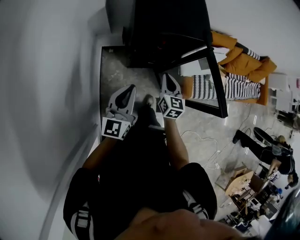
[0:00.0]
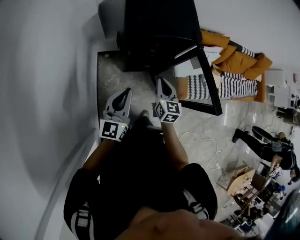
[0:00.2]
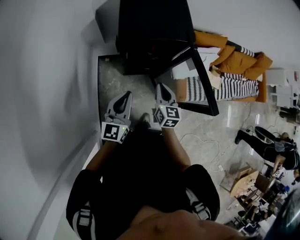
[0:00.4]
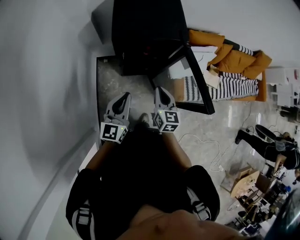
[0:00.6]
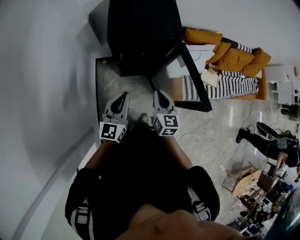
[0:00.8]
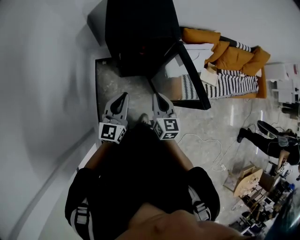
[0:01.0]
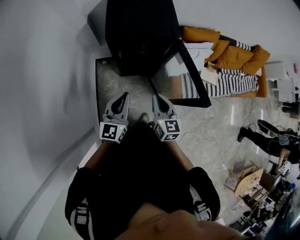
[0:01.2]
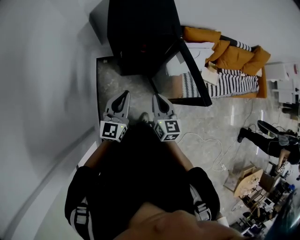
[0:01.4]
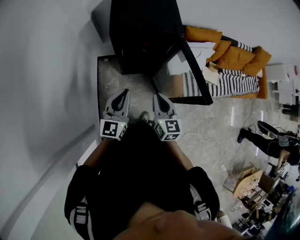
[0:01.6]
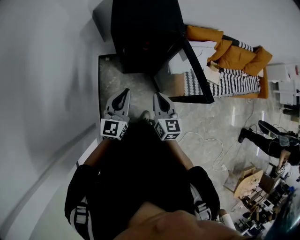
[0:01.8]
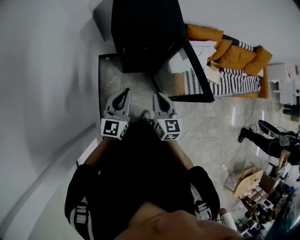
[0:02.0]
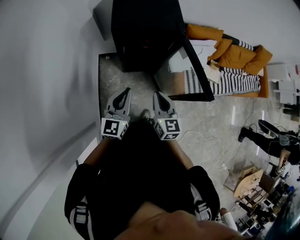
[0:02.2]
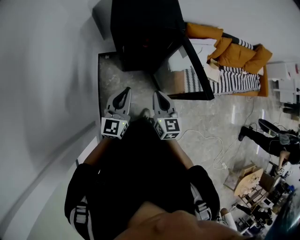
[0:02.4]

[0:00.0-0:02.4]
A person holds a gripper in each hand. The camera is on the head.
0:00.0 to 0:01.2: The left gripper is displaced to the right by roughly 10 cm; the right gripper shifts about 15 cm backward, upward and to the right.
0:01.2 to 0:02.4: There are only small adjustments of the grippers.

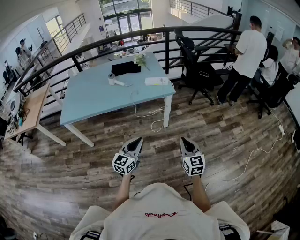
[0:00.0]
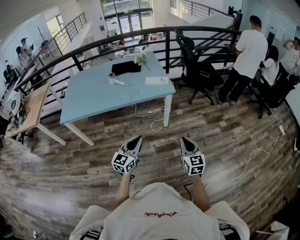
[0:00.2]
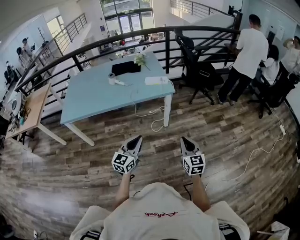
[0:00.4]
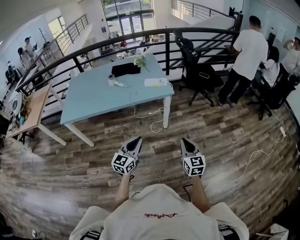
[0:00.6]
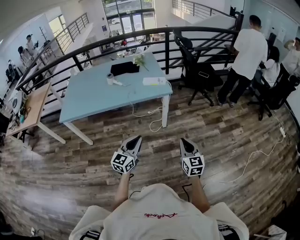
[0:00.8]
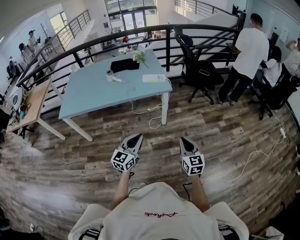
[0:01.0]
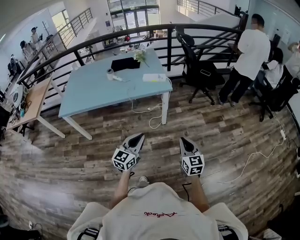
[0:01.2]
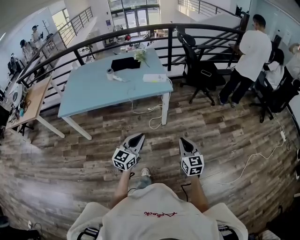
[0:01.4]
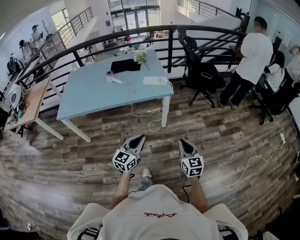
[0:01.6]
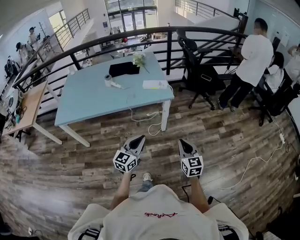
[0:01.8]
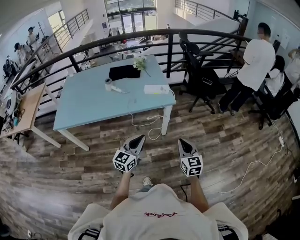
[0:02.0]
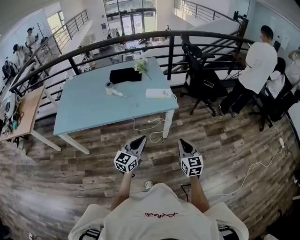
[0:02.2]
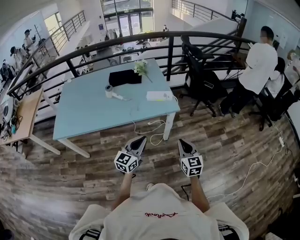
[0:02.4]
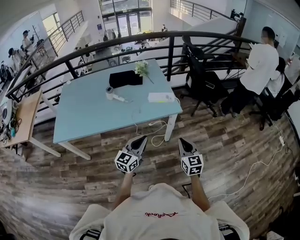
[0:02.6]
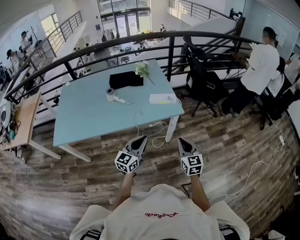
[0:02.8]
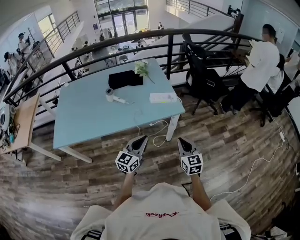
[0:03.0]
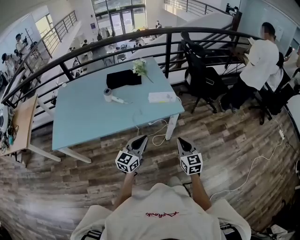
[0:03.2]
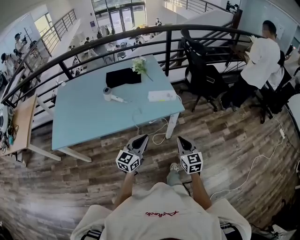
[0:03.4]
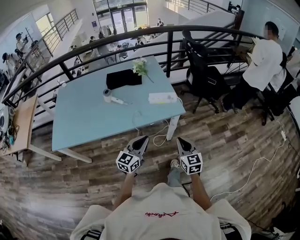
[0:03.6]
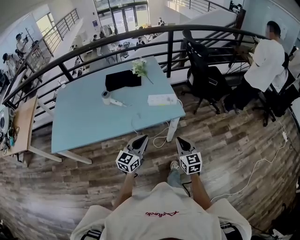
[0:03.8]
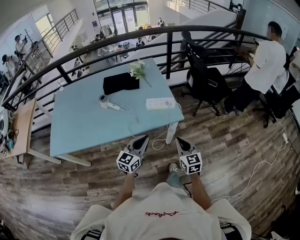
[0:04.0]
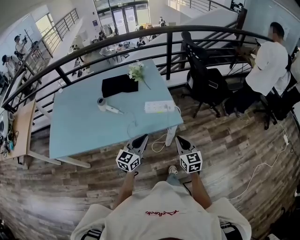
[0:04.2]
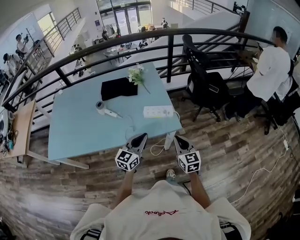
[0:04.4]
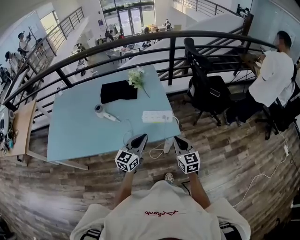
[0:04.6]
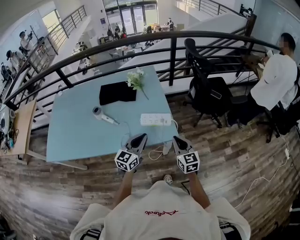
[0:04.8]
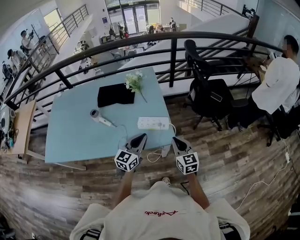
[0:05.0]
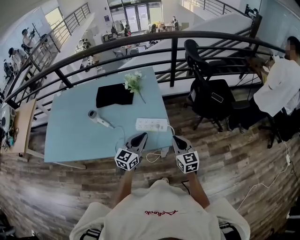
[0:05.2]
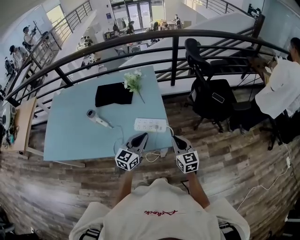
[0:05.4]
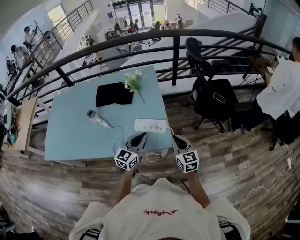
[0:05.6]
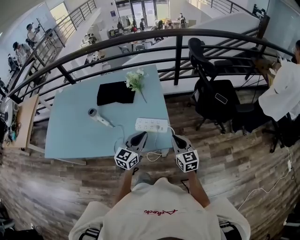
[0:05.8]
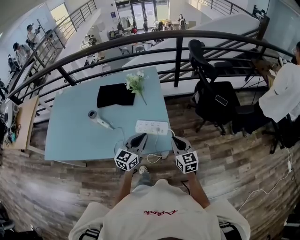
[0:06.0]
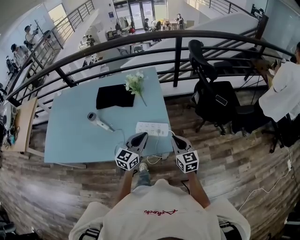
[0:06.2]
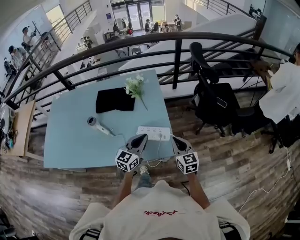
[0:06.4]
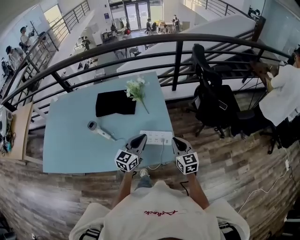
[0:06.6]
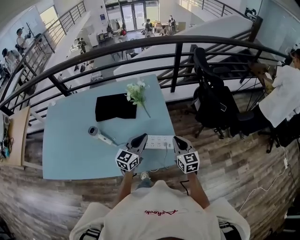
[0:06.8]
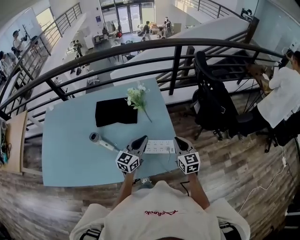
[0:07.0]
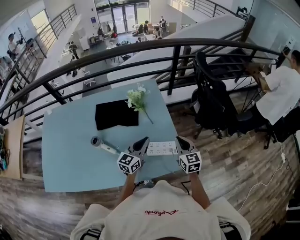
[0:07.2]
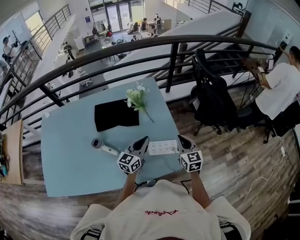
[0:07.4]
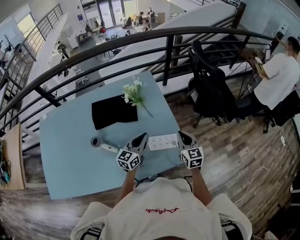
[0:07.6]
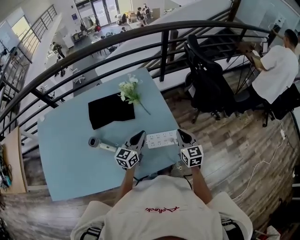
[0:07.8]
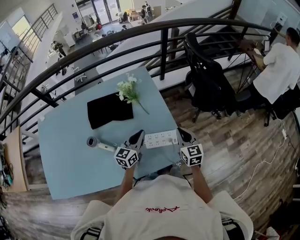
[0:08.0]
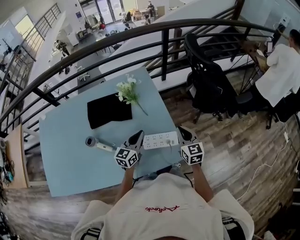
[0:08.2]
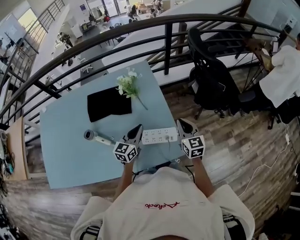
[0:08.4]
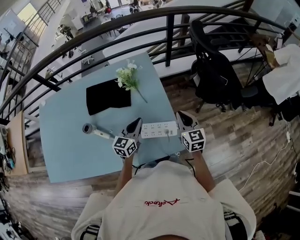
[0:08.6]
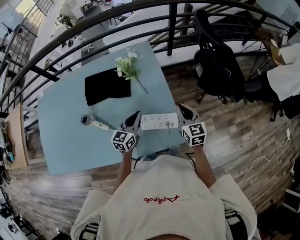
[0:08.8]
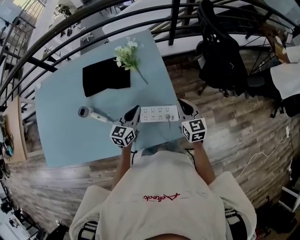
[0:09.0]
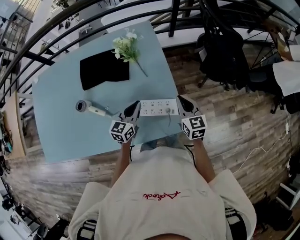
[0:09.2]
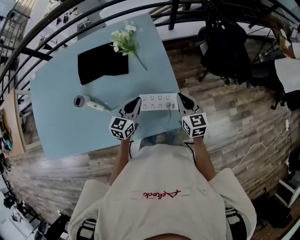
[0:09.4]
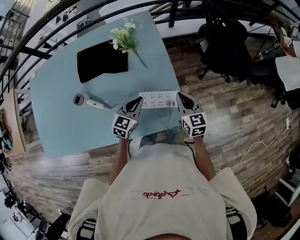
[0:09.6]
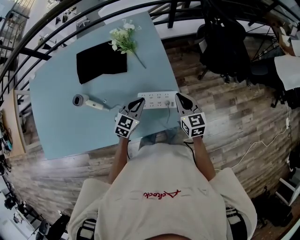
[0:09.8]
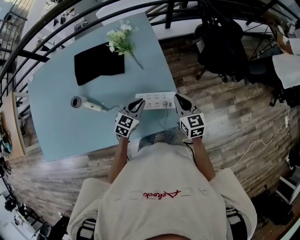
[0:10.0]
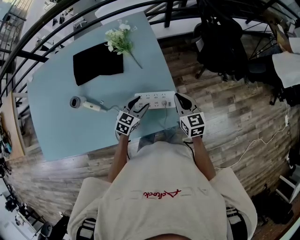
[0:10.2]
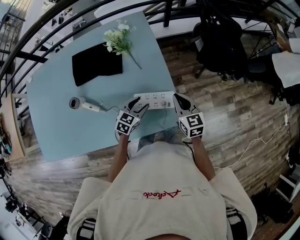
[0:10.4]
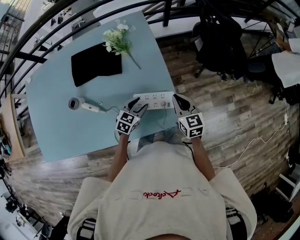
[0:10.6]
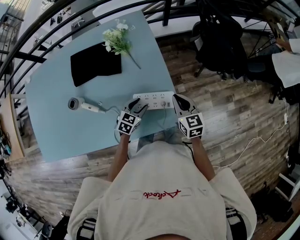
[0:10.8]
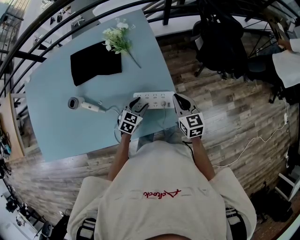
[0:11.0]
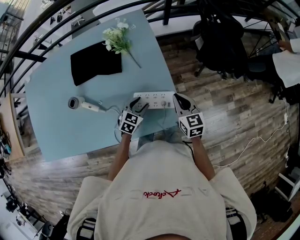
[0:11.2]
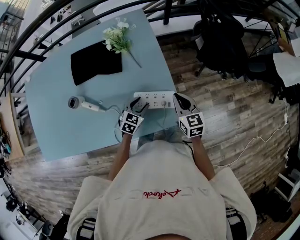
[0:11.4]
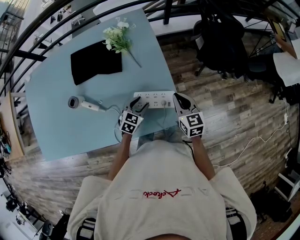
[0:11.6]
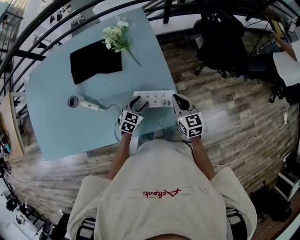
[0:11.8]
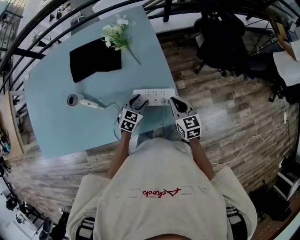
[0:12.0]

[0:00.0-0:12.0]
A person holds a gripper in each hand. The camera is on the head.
0:00.0 to 0:01.6: The right gripper moves approximately 5 cm. Meanwhile the left gripper shifts about 5 cm to the right.
0:01.6 to 0:03.0: Both grippers move forward and to the left, some 25 cm.
0:03.0 to 0:04.4: The two grippers go approximately 20 cm forward.
0:04.4 to 0:06.0: The left gripper moves forward and to the right, approximately 15 cm. The right gripper shifts some 15 cm forward.
0:06.0 to 0:07.6: The left gripper heads to the left and forward, covering roughly 20 cm, while the right gripper shifts roughly 15 cm forward and to the left.
0:07.6 to 0:09.0: The left gripper heads downward, covering about 5 cm. Meanwhile the right gripper moves forward, approximately 5 cm.
0:09.0 to 0:10.4: The right gripper moves about 5 cm, while the left gripper is displaced downward and to the right by some 10 cm, rotates roughly 30 degrees, and opens.
0:10.4 to 0:12.0: The grippers make only small movements.

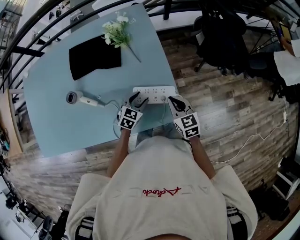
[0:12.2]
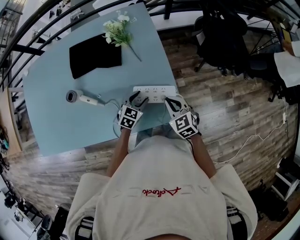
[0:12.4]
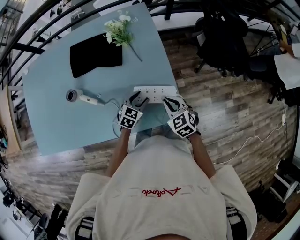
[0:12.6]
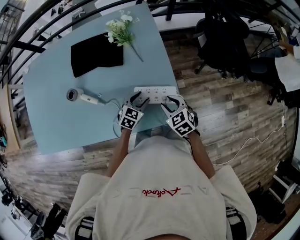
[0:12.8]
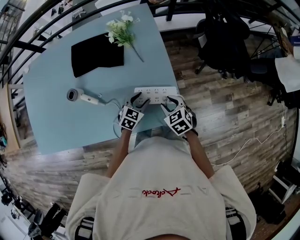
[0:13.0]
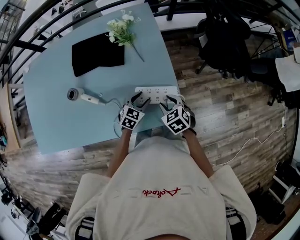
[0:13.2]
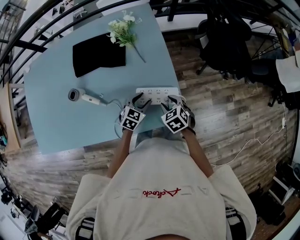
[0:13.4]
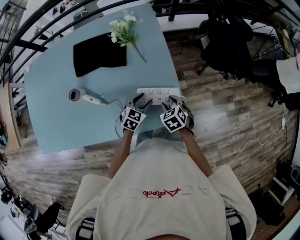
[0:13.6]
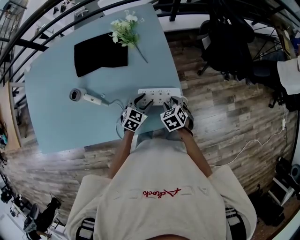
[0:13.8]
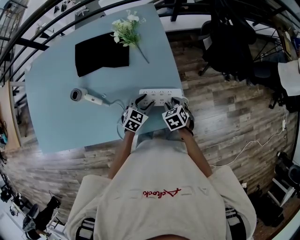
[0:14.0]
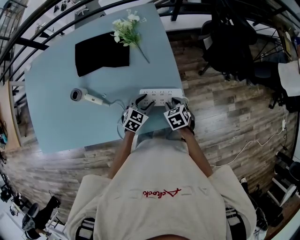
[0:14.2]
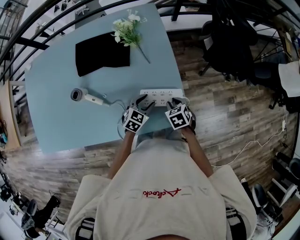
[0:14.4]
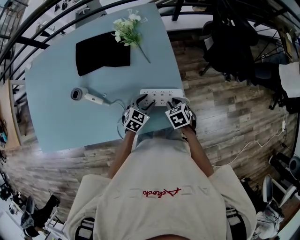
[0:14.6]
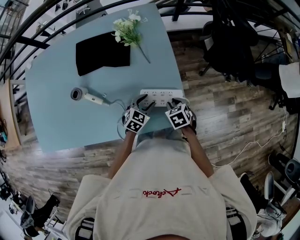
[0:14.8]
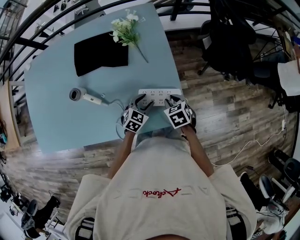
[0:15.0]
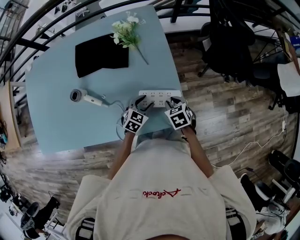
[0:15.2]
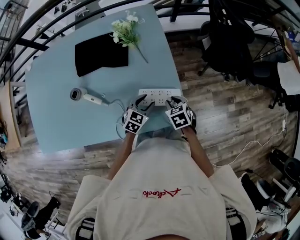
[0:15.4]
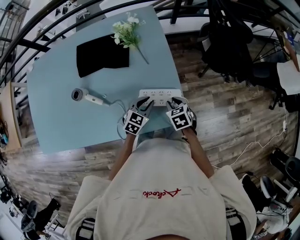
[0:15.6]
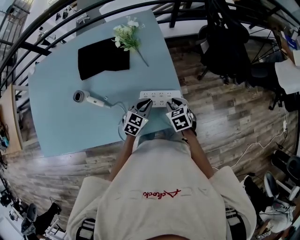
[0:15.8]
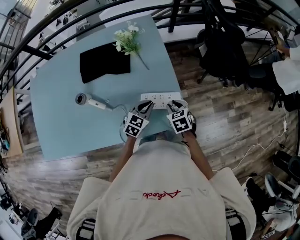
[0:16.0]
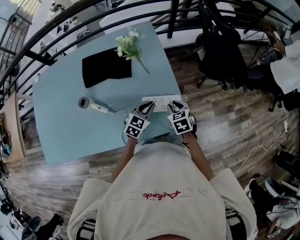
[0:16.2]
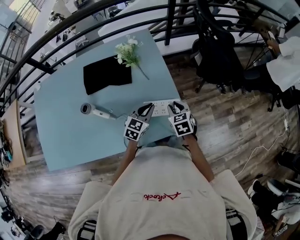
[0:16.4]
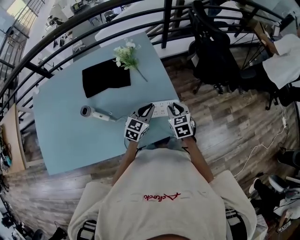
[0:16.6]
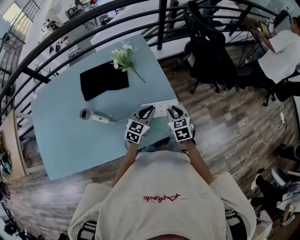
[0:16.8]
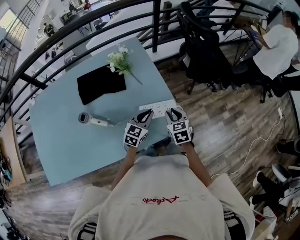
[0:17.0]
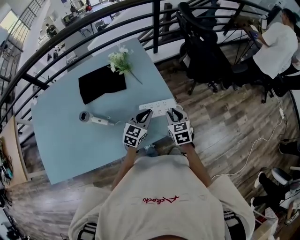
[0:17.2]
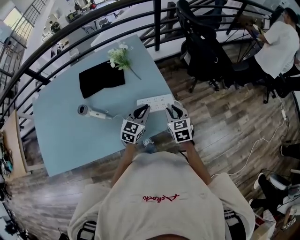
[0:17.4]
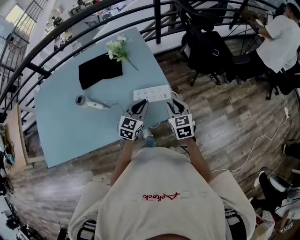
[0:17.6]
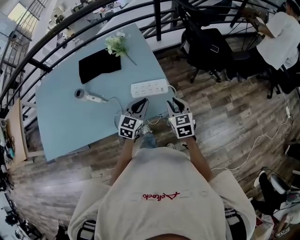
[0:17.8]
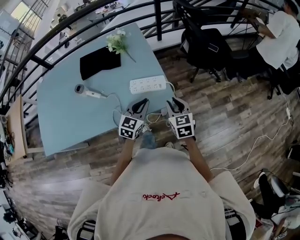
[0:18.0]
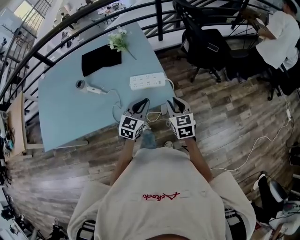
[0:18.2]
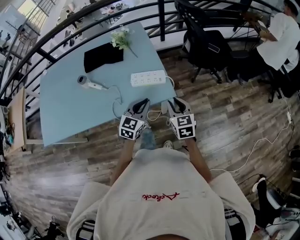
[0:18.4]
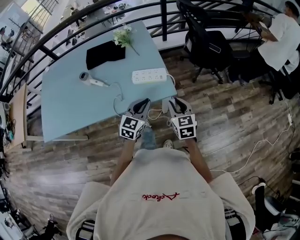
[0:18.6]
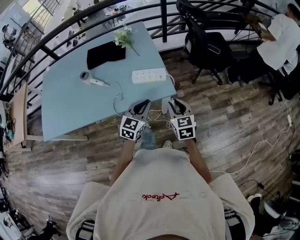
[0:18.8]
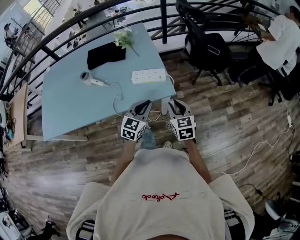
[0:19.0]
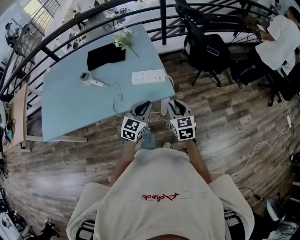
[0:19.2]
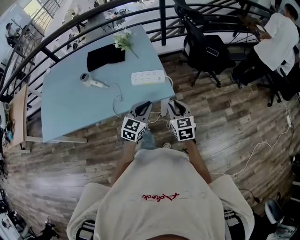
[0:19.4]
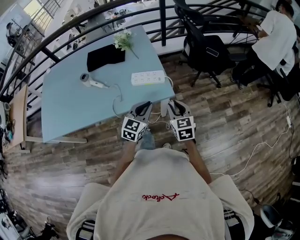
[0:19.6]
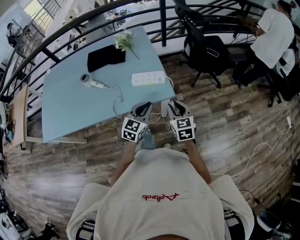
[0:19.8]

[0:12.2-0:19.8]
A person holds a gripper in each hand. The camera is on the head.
0:12.2 to 0:13.8: The right gripper travels downward by some 10 cm, angles its fingers downward, by some 30 degrees, and opens.
0:13.8 to 0:15.2: There are only small adjustments of the grippers.
0:15.2 to 0:16.8: Both grippers travel together upward, about 10 cm. The left gripper rotates about 20 degrees, and closes up. The right gripper changes its angle by roughly 30 degrees.
0:16.8 to 0:18.2: Both grippers travel together backward and to the right, about 20 cm.
0:18.2 to 0:19.8: Both grippers travel together backward, about 5 cm.

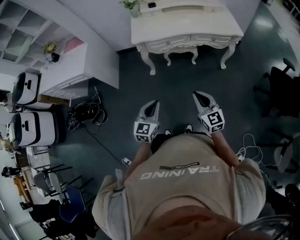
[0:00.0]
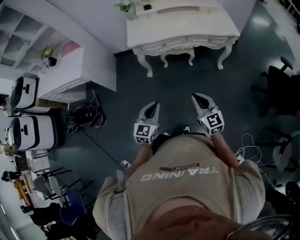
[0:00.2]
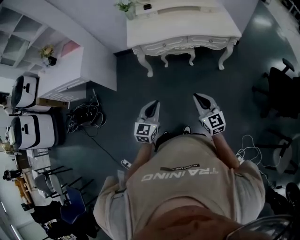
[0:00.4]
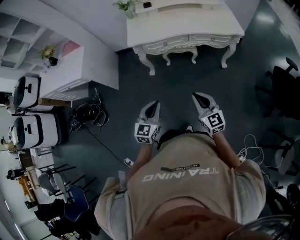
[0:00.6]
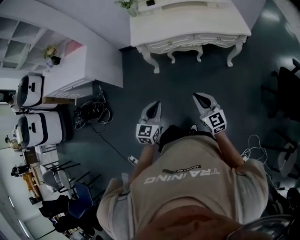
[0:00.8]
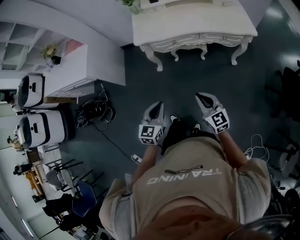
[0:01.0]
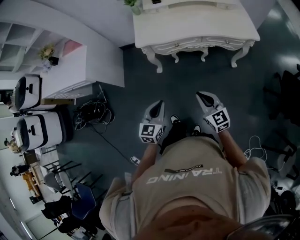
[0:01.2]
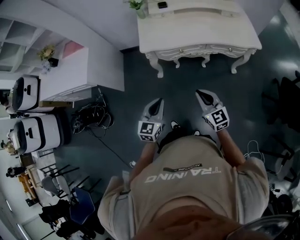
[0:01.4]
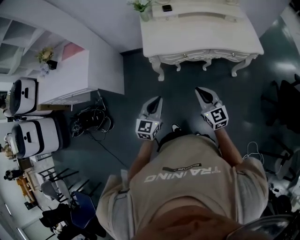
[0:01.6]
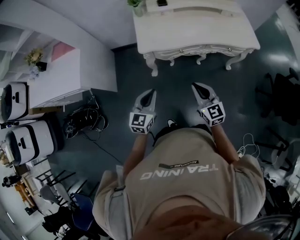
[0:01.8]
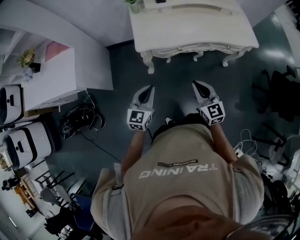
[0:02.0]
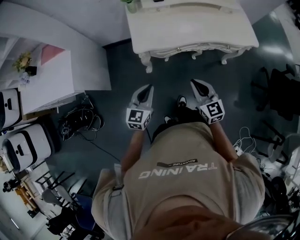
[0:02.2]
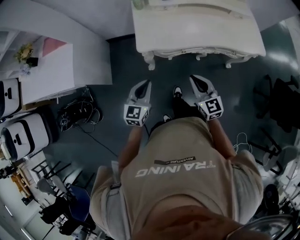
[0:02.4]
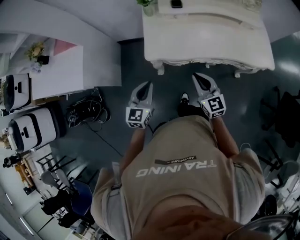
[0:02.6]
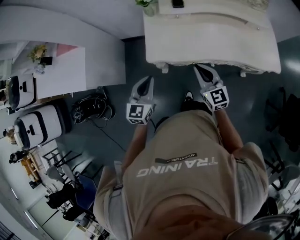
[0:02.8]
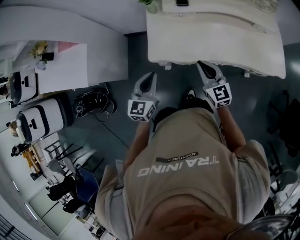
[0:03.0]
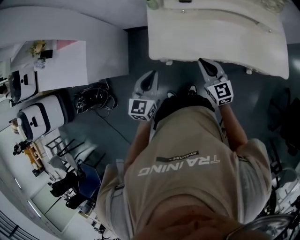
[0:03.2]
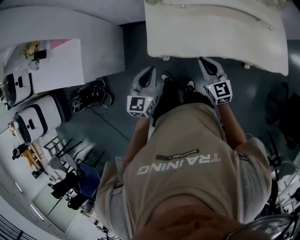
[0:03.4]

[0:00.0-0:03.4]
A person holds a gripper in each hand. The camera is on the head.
0:00.0 to 0:01.6: Both grippers travel together forward, approximately 25 cm.
0:01.6 to 0:03.4: Both grippers travel together forward, roughly 35 cm.
